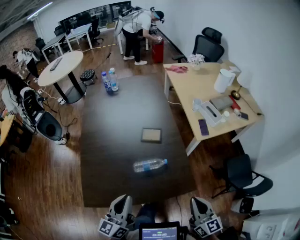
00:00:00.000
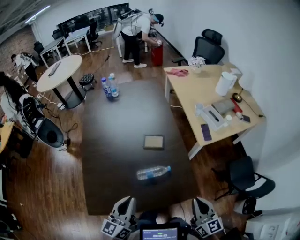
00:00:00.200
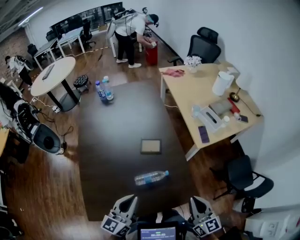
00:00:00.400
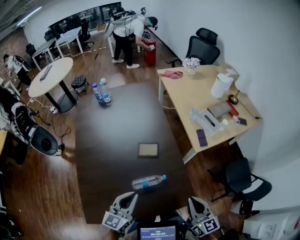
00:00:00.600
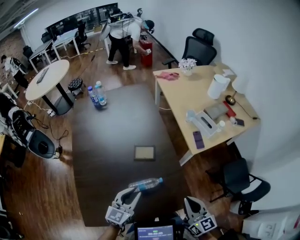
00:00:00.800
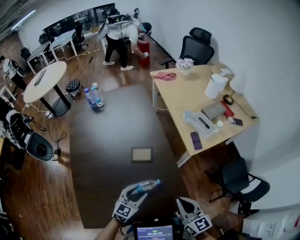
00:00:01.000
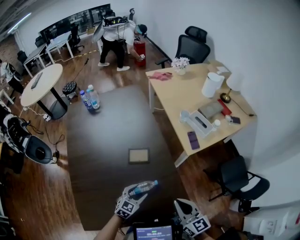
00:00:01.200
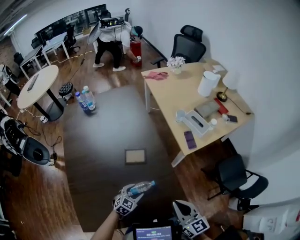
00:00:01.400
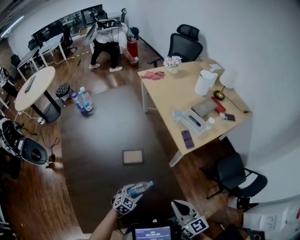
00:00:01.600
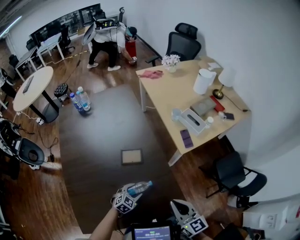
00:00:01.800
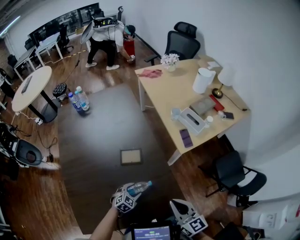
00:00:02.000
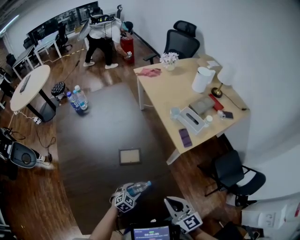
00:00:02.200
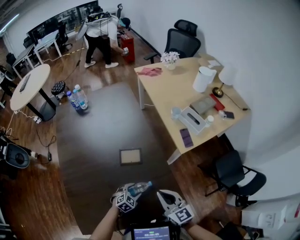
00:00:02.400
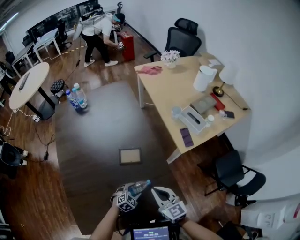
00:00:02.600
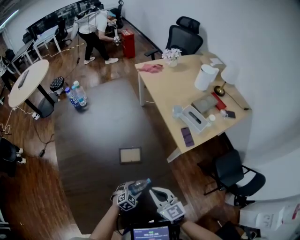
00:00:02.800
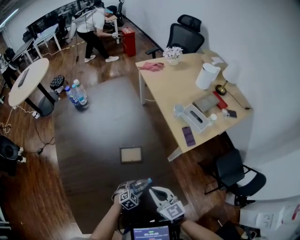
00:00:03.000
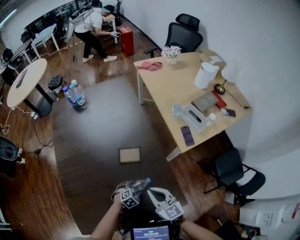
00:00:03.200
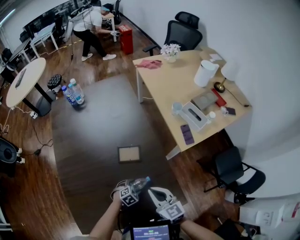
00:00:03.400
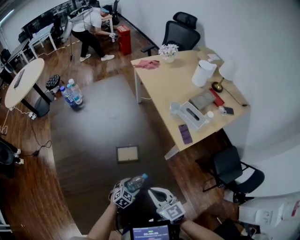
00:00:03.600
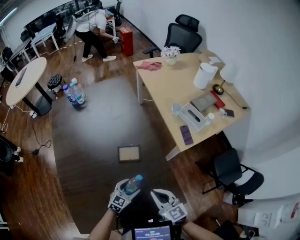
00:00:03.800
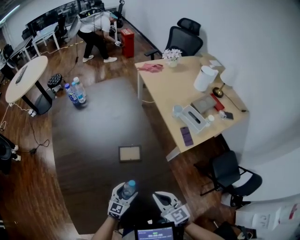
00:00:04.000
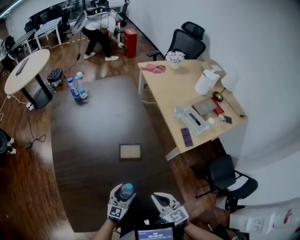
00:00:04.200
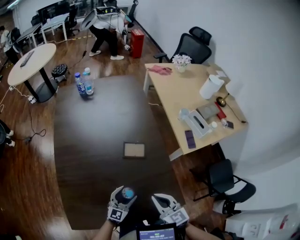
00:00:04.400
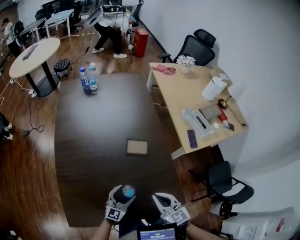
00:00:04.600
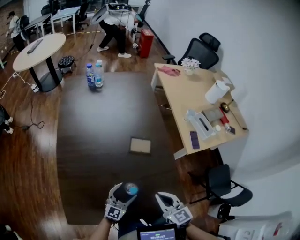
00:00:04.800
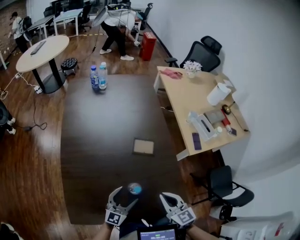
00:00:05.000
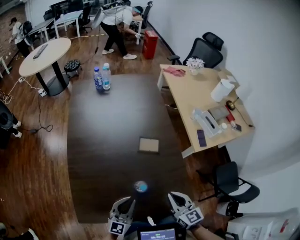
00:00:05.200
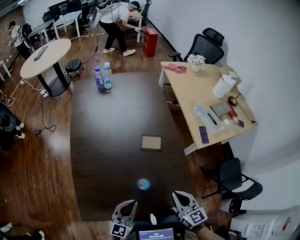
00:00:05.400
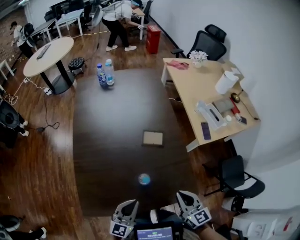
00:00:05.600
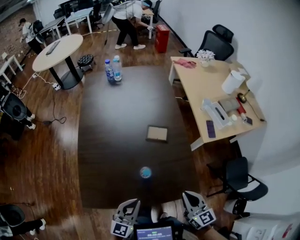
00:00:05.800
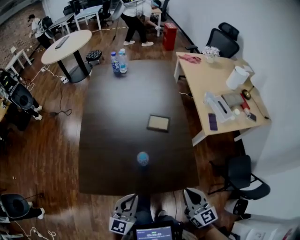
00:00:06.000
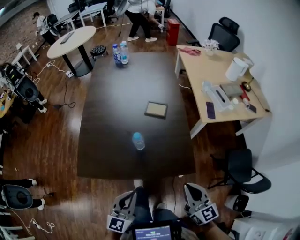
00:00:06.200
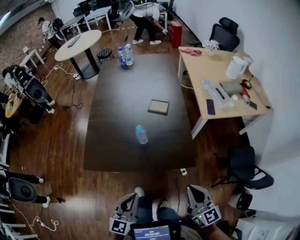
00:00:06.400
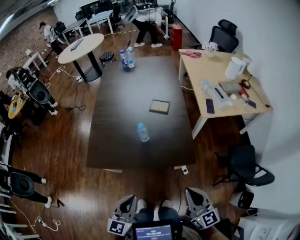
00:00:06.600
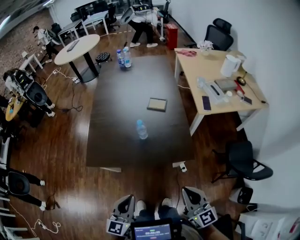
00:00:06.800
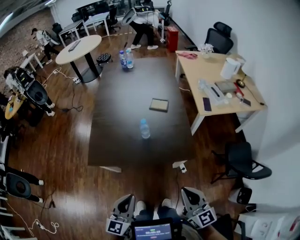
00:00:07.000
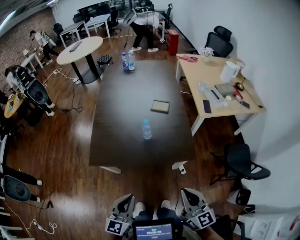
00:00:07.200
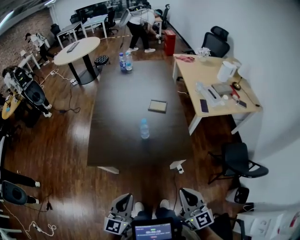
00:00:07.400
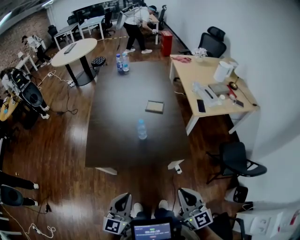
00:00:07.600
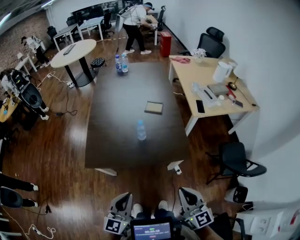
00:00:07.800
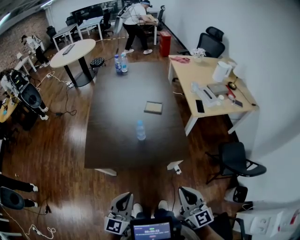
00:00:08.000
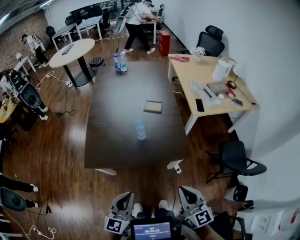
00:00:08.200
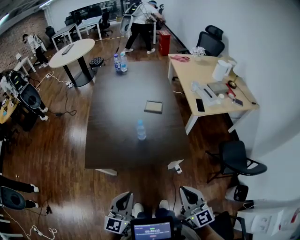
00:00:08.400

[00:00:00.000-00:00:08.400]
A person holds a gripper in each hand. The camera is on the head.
00:00:00.000 to 00:00:01.400: The right gripper is displaced forward by some 10 cm, while the left gripper shifts some 35 cm downward and forward, tilts its fingers some 50 degrees downward, and opens.
00:00:01.400 to 00:00:02.800: The left gripper goes some 10 cm downward, while the right gripper shifts some 15 cm to the left, downward and forward.
00:00:02.800 to 00:00:04.200: The left gripper is displaced upward and to the left by some 10 cm, and angles its fingers upward, by approximately 40 degrees.
00:00:04.200 to 00:00:05.600: The right gripper travels backward by roughly 5 cm, while the left gripper goes roughly 20 cm backward, upward and to the left, and closes its fingers.
00:00:05.600 to 00:00:07.000: Both grippers move backward, approximately 30 cm.
00:00:07.000 to 00:00:08.400: The grippers make only small movements.

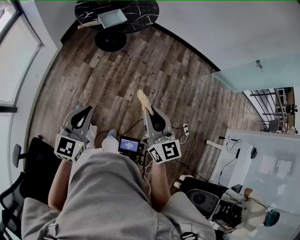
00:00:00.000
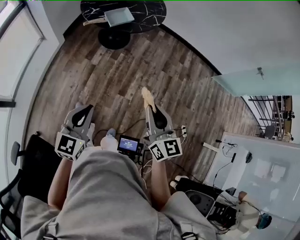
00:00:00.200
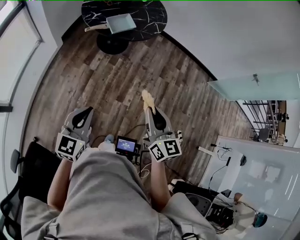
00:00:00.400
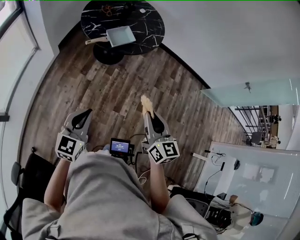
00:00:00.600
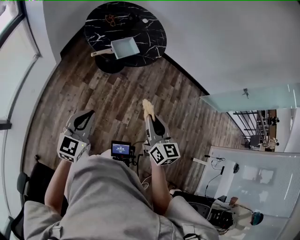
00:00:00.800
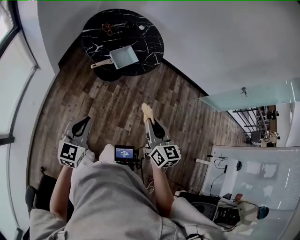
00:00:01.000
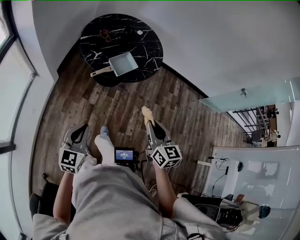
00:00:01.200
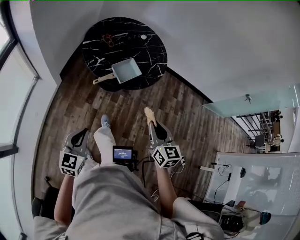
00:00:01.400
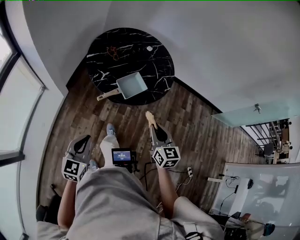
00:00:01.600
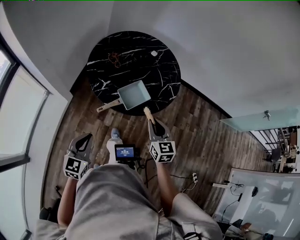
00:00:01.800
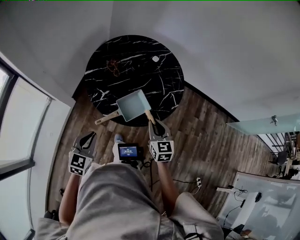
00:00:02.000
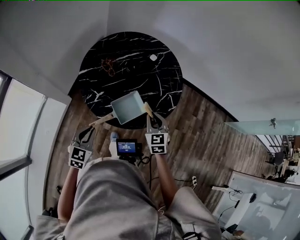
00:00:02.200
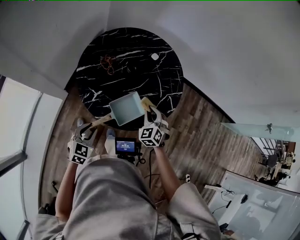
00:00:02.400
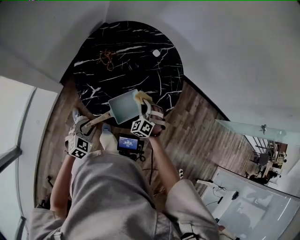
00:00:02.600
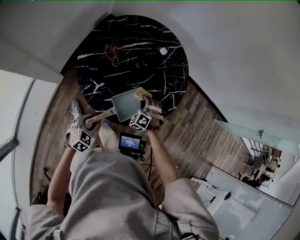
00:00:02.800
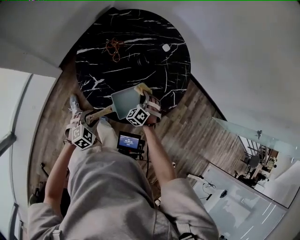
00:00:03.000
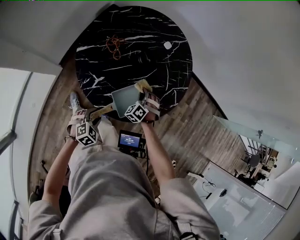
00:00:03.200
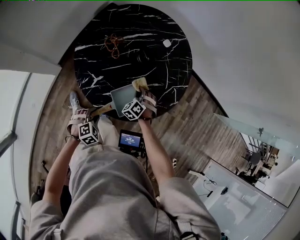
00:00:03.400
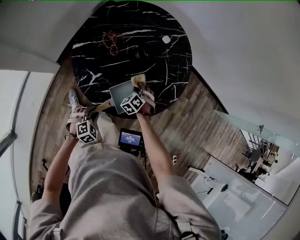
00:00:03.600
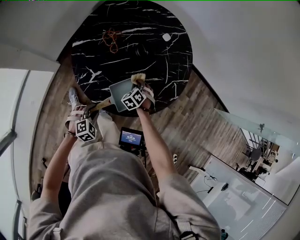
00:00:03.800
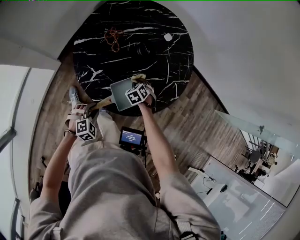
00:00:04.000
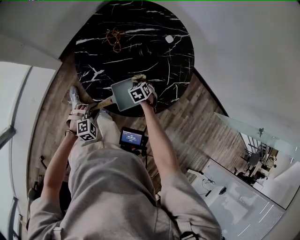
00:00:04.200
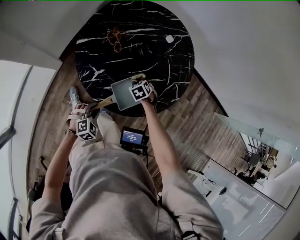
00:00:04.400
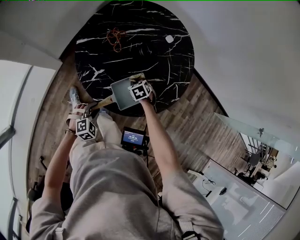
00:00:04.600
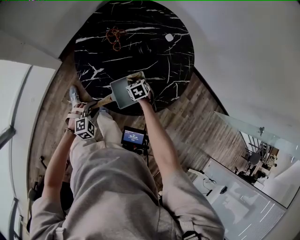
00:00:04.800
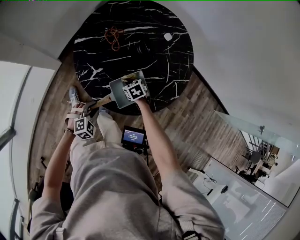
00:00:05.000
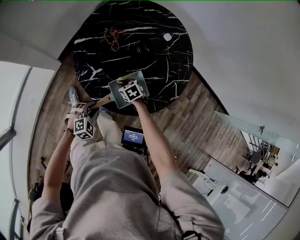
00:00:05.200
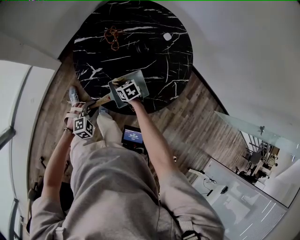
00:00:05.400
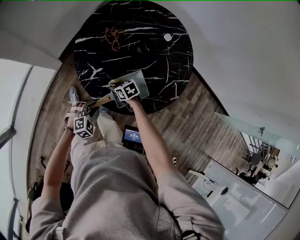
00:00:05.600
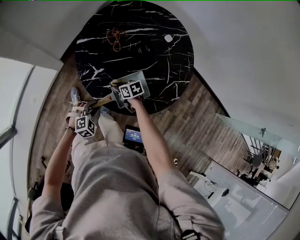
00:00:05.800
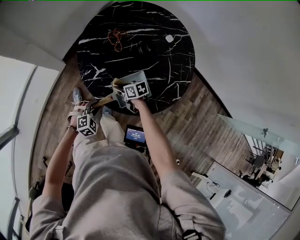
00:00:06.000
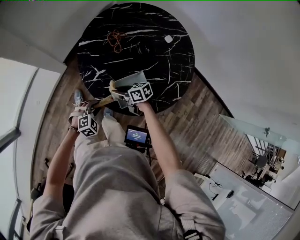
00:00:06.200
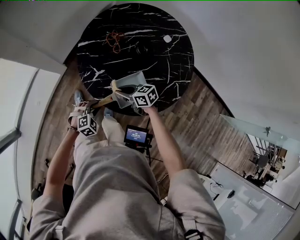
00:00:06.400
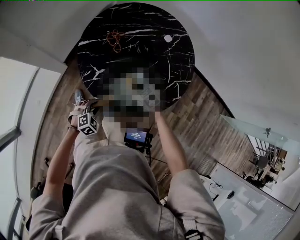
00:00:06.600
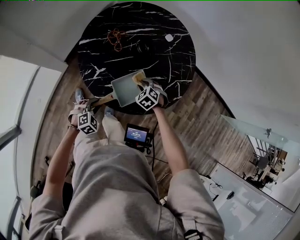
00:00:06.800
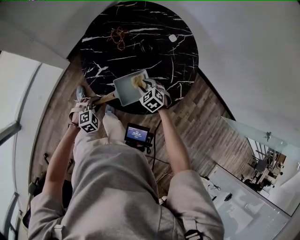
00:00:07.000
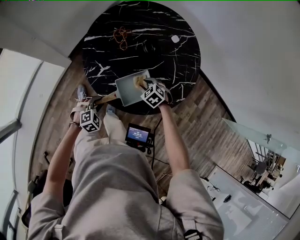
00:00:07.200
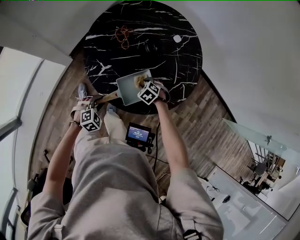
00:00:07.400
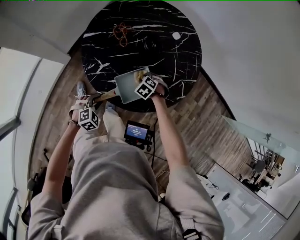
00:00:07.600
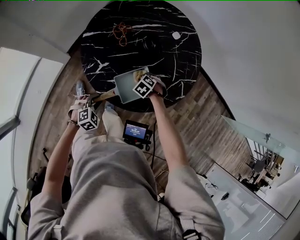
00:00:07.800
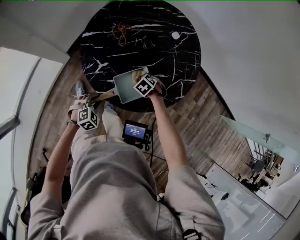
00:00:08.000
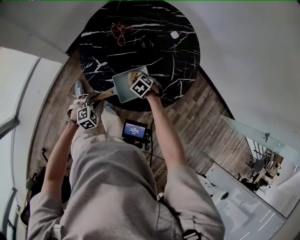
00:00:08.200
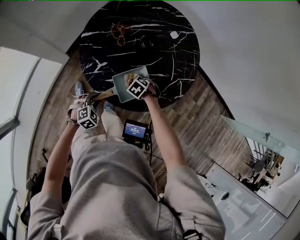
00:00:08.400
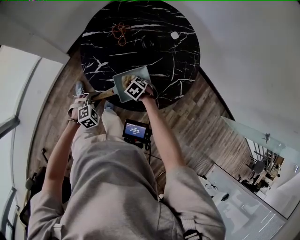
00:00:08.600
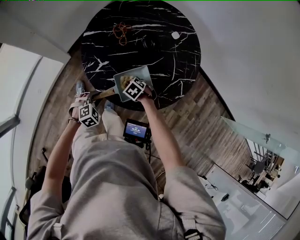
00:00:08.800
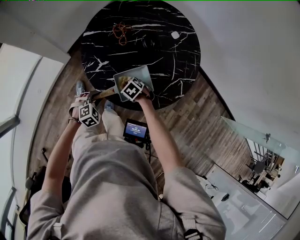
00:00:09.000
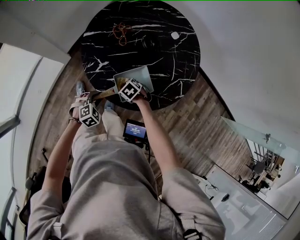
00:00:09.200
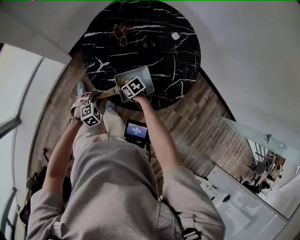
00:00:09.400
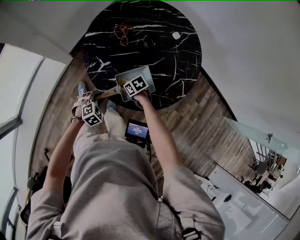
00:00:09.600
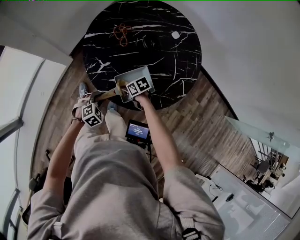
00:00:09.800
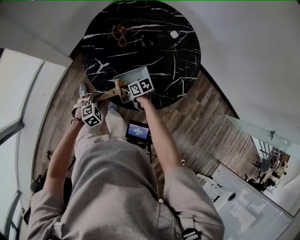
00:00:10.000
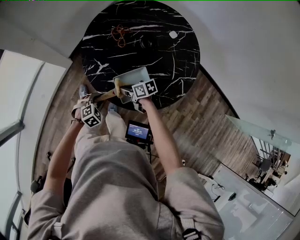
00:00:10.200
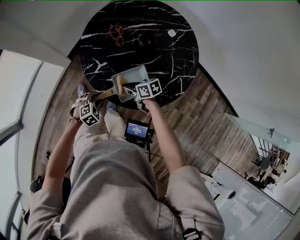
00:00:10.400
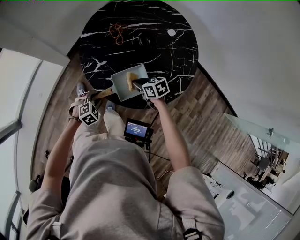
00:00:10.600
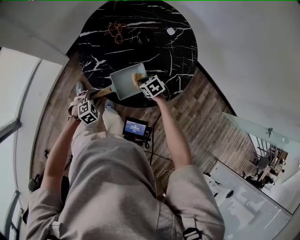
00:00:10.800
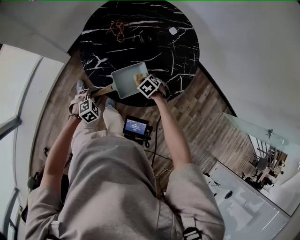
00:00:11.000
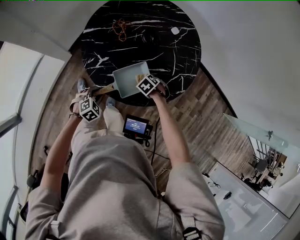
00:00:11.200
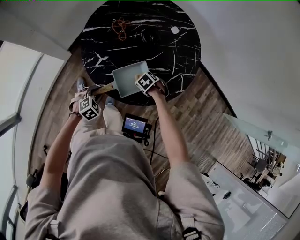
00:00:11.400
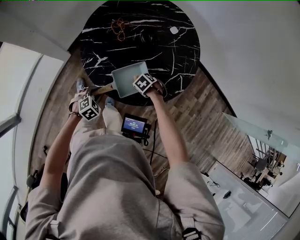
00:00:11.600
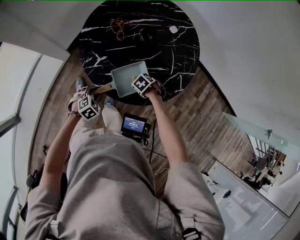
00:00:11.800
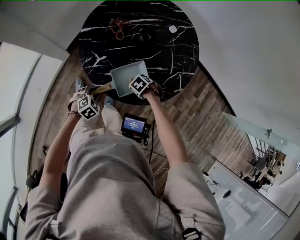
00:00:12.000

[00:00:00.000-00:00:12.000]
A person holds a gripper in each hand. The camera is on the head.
00:00:00.000 to 00:00:01.600: The two grippers travel together, forward and to the left, about 40 cm.
00:00:01.600 to 00:00:03.000: Both grippers move forward and downward, some 40 cm. The right gripper twists about 70 degrees counterclockwise, seen from behind. The left gripper points its fingers roughly 30 degrees further downward, and opens.
00:00:03.000 to 00:00:04.400: The right gripper travels downward by some 5 cm, and turns by about 40 degrees.
00:00:04.400 to 00:00:06.000: The right gripper moves some 15 cm, and changes its angle by about 50 degrees.
00:00:06.000 to 00:00:07.600: The right gripper travels upward and back again, approximately 10 cm each way, and points its fingers roughly 30 degrees further downward.
00:00:07.600 to 00:00:09.000: The right gripper changes place by roughly 10 cm.
00:00:09.000 to 00:00:10.400: The right gripper is displaced upward by roughly 5 cm, and tilts its fingers roughly 40 degrees upward.
00:00:10.400 to 00:00:12.000: The right gripper moves some 10 cm, and tips its fingers downward by approximately 40 degrees.

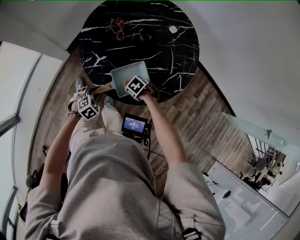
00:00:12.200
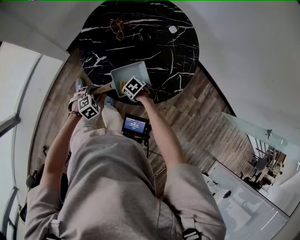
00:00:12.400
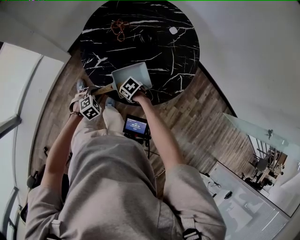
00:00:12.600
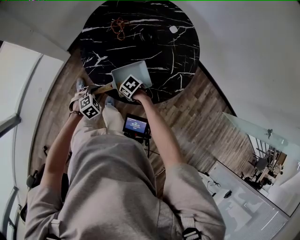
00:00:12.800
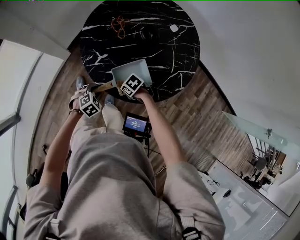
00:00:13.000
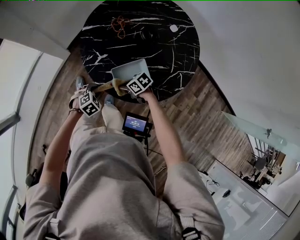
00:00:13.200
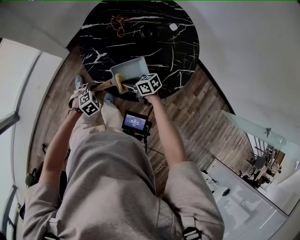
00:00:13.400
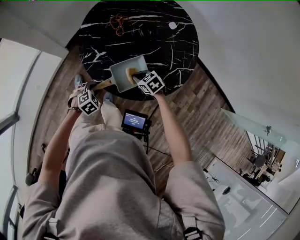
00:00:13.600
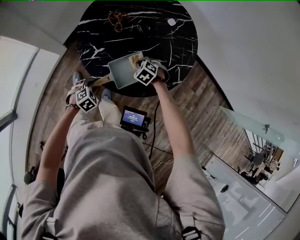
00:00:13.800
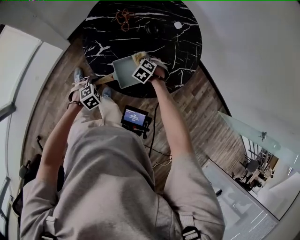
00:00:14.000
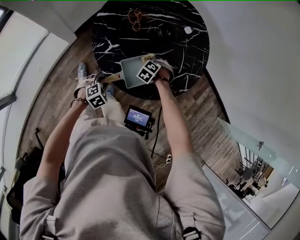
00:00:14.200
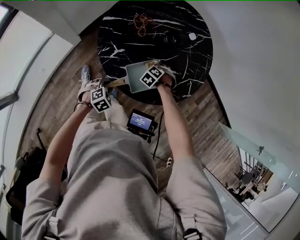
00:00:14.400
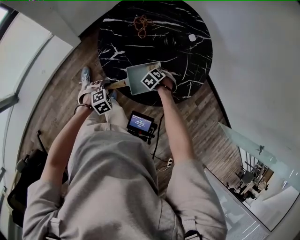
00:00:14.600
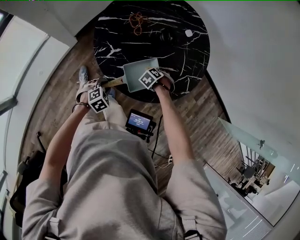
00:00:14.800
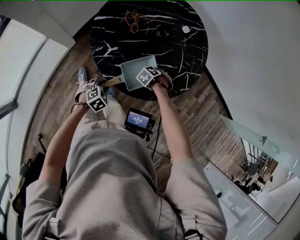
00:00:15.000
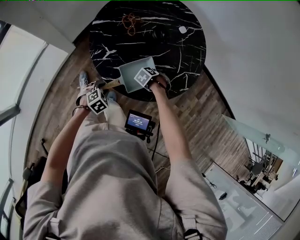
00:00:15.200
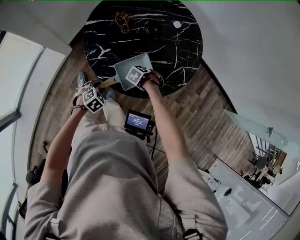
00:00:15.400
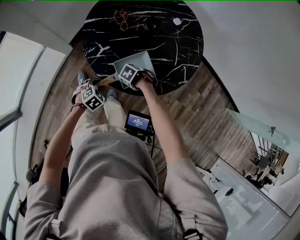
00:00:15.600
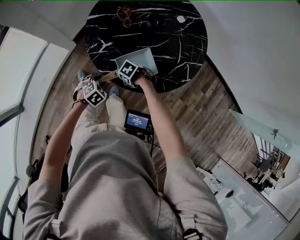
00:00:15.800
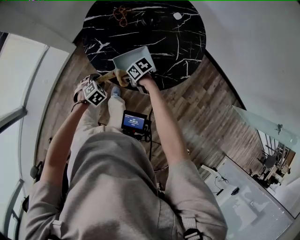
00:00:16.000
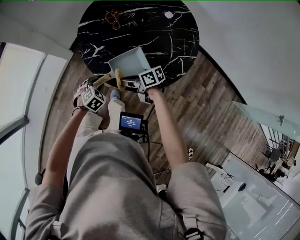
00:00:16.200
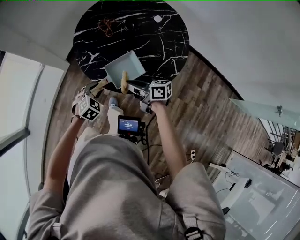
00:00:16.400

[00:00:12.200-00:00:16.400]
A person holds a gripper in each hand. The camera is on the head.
00:00:12.200 to 00:00:13.600: The right gripper heads upward, covering approximately 5 cm, and swivels roughly 20 degrees.
00:00:13.600 to 00:00:15.000: The right gripper moves roughly 10 cm, and turns by approximately 50 degrees.
00:00:15.000 to 00:00:16.400: The right gripper moves upward, some 20 cm, and tips its fingers upward by about 60 degrees. Meanwhile the left gripper travels upward by about 10 cm.
